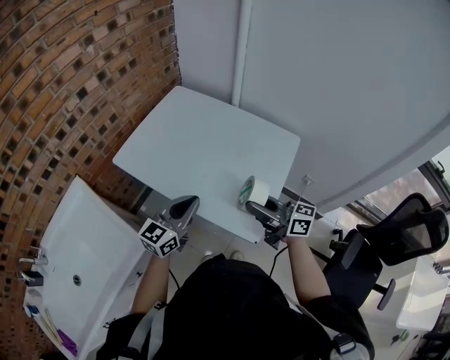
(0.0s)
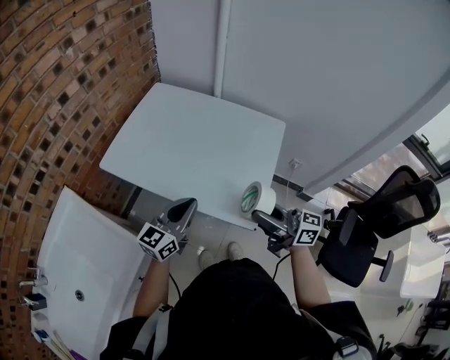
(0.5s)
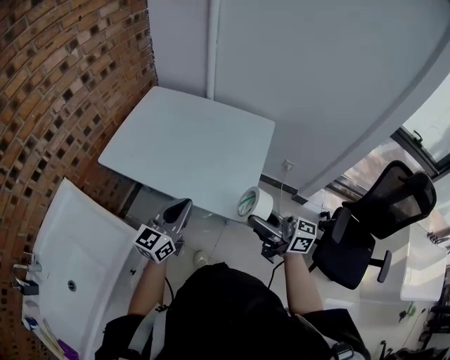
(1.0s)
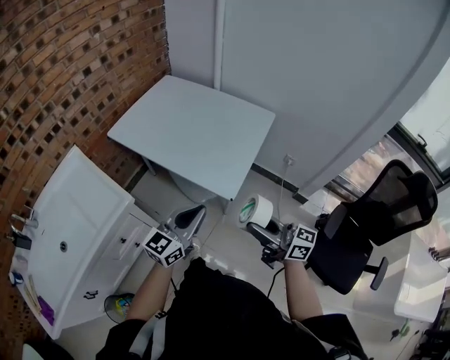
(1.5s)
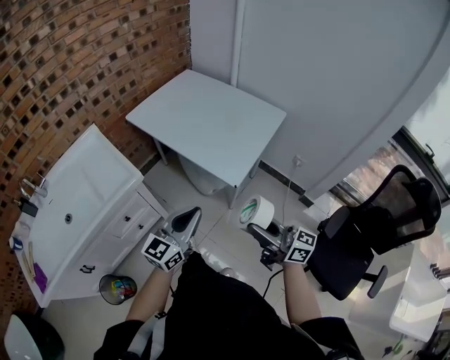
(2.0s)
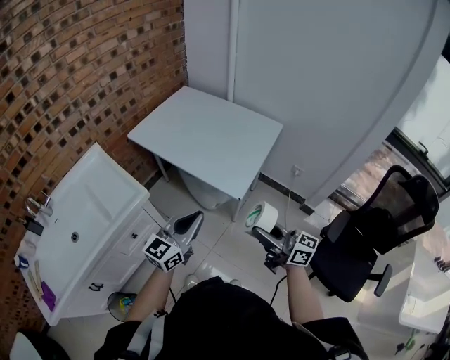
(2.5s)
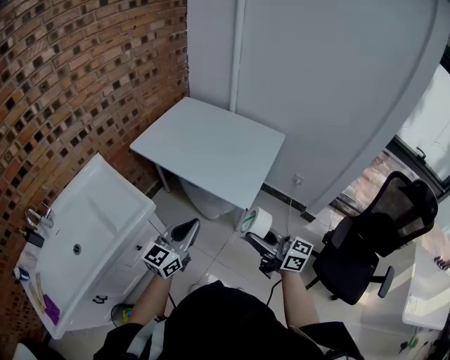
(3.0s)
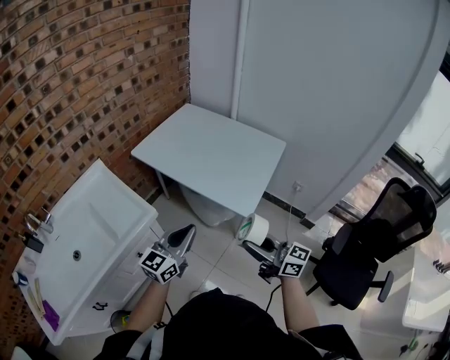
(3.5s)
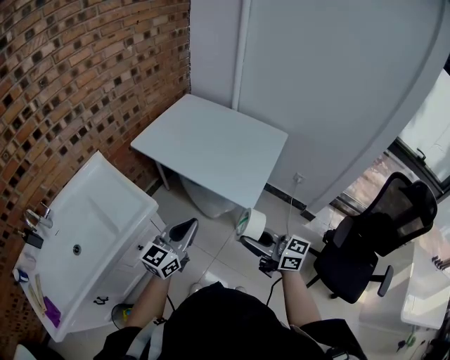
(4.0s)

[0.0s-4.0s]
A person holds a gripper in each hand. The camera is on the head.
0.0s to 2.0s: The two grippers go some 30 cm backward.
2.0s to 4.0s: The left gripper moves to the left and forward, approximately 10 cm. Meanwhile the right gripper travels to the left by roughly 10 cm.

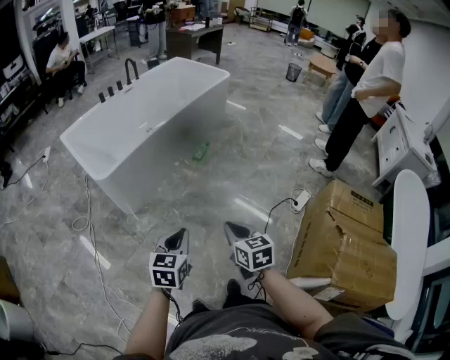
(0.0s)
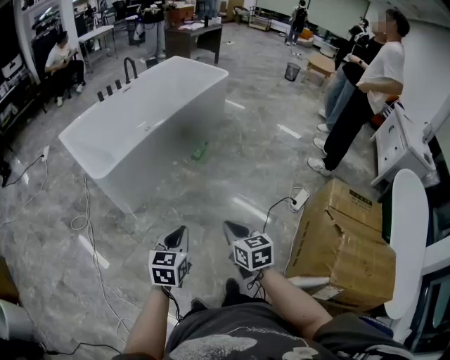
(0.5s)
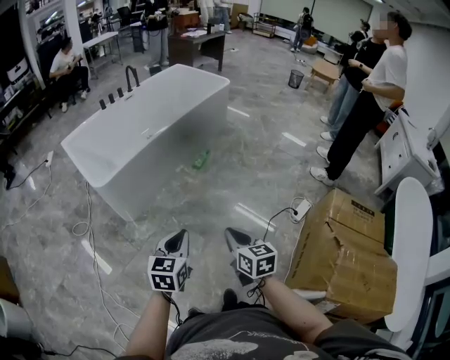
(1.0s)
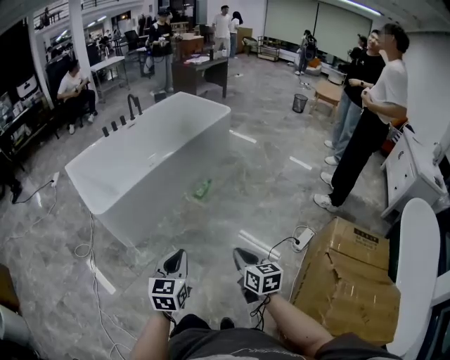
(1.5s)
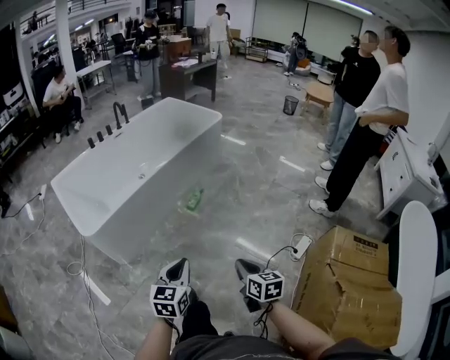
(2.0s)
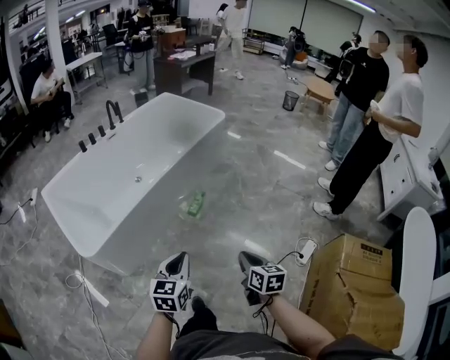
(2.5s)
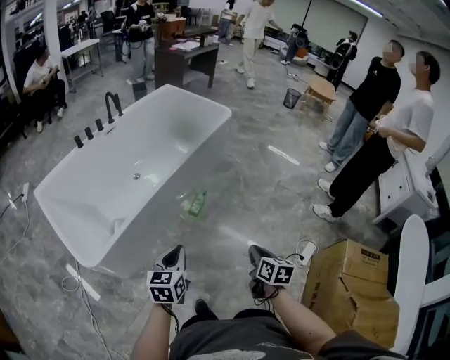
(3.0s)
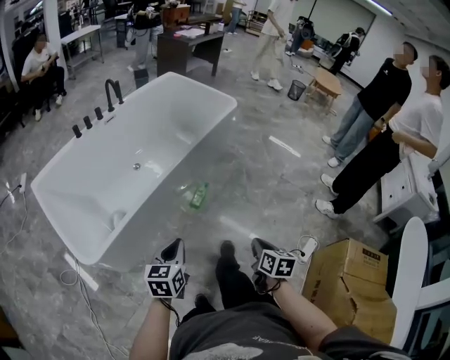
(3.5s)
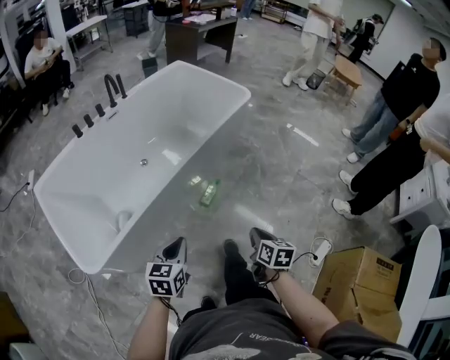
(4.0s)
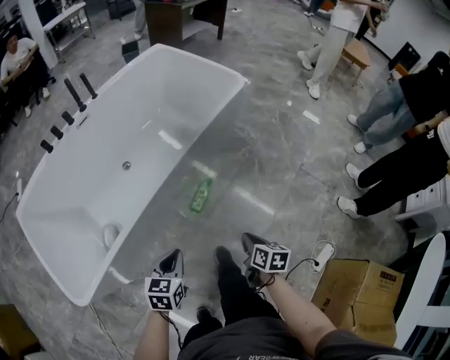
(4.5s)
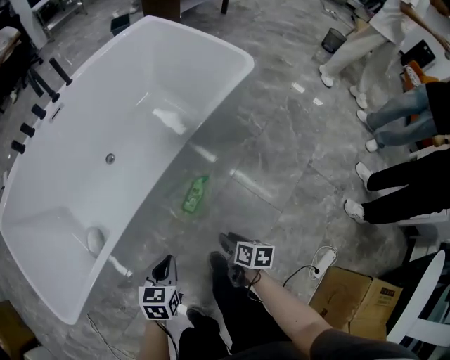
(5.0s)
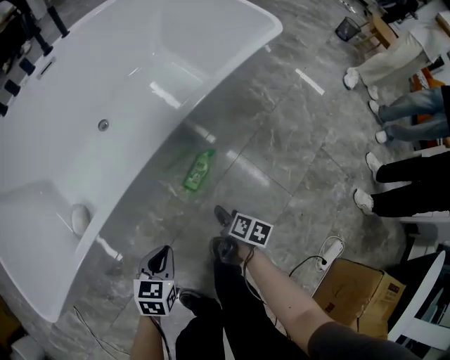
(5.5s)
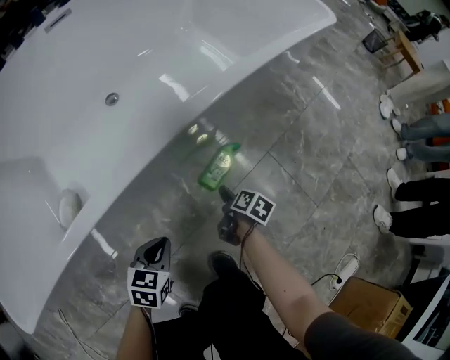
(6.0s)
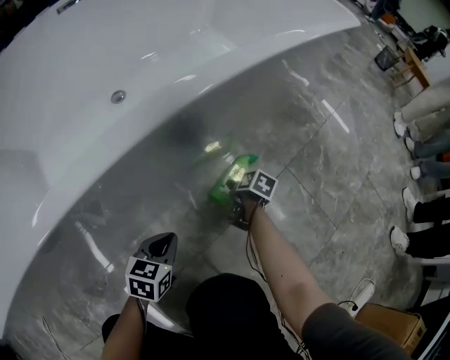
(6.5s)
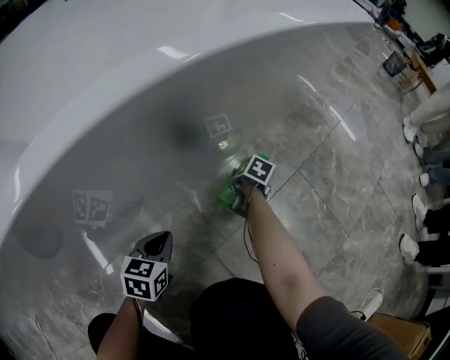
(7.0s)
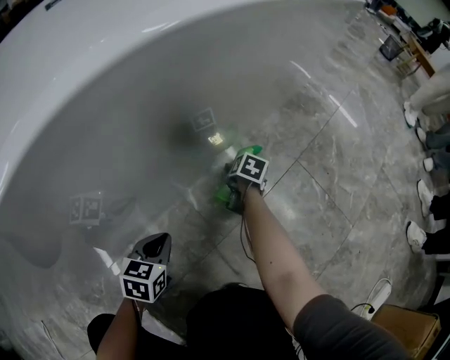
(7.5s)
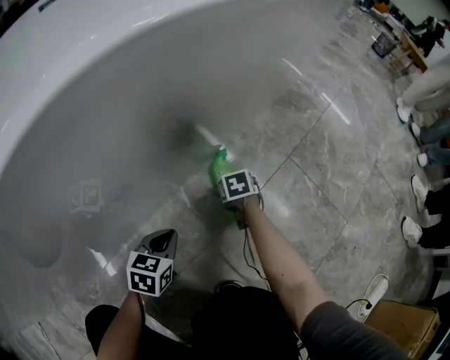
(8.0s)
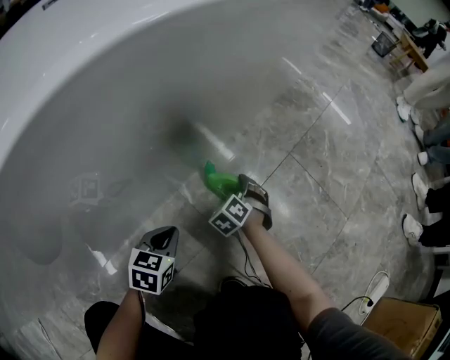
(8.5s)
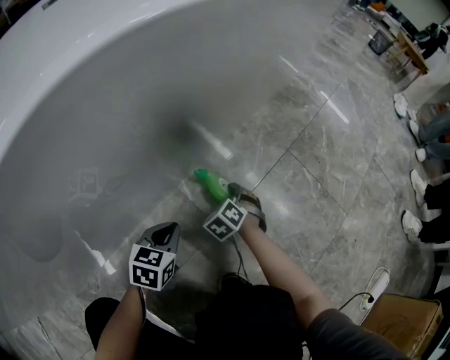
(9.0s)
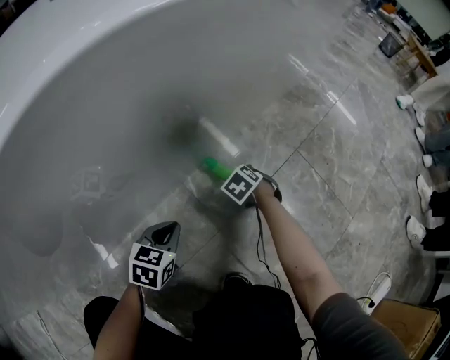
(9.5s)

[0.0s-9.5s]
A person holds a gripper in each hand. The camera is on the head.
0.0s to 2.0s: The two grippers go some 20 cm forward and to the right.
2.0s to 4.0s: The left gripper moves forward and to the left, approximately 40 cm, while the right gripper travels forward by approximately 40 cm.
4.0s to 5.5s: Both grippers move downward and forward, about 40 cm. The right gripper turns by about 30 degrees, and opens.
5.5s to 7.5s: The left gripper moves downward, approximately 35 cm; the right gripper travels downward and forward by about 40 cm, and swivels roughly 20 degrees.
7.5s to 9.5s: The right gripper moves approximately 10 cm, rotates around the line of its fingers by roughly 70 degrees, counterclockwise from behind, and closes.

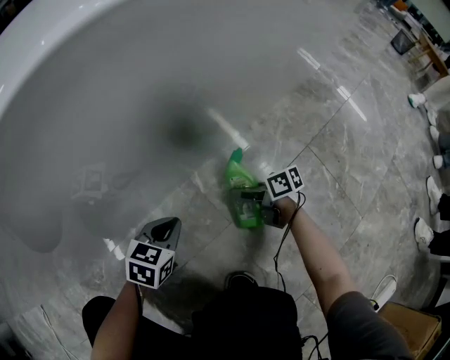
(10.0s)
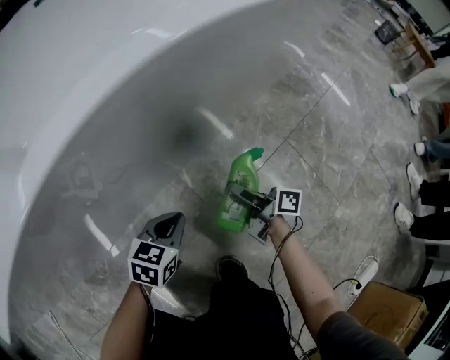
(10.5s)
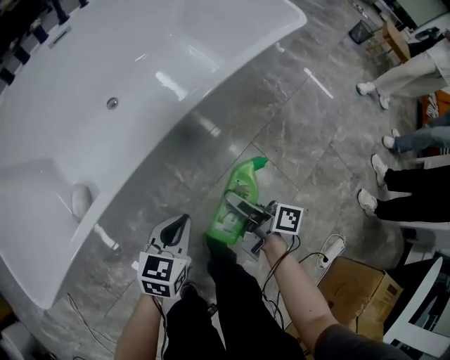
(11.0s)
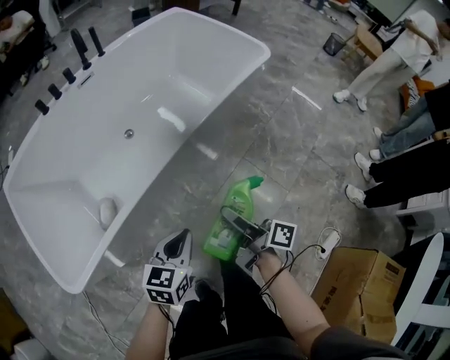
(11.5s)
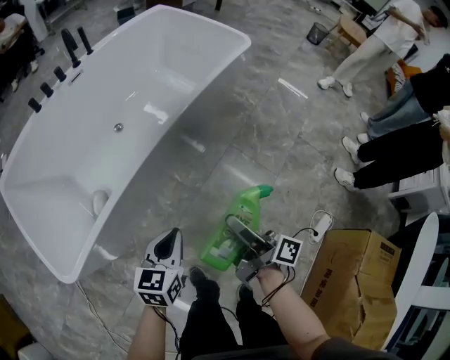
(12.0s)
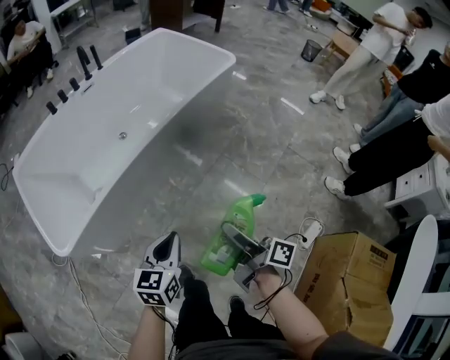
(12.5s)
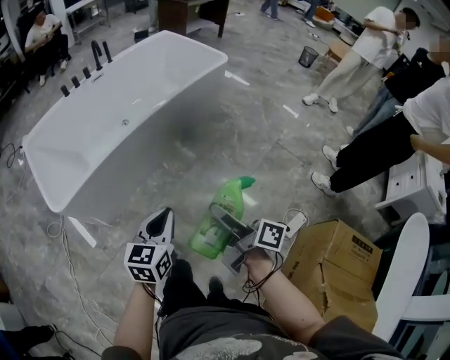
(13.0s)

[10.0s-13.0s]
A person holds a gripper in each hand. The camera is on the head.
10.0s to 11.5s: The two grippers go approximately 60 cm upward. The right gripper changes its angle by approximately 60 degrees.
11.5s to 13.0s: Both grippers travel together backward and upward, roughly 35 cm.

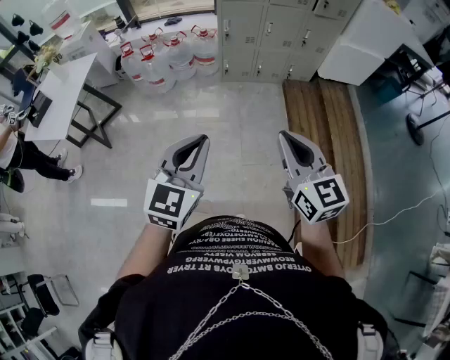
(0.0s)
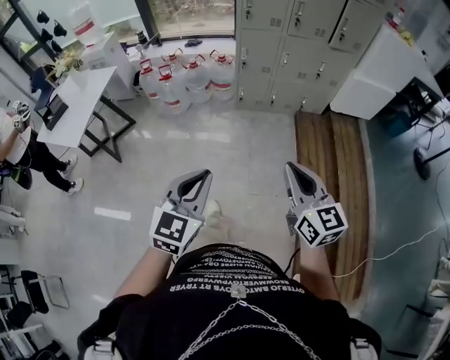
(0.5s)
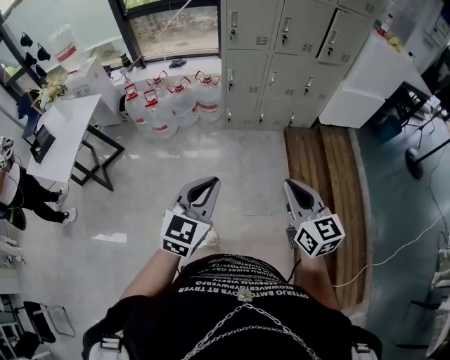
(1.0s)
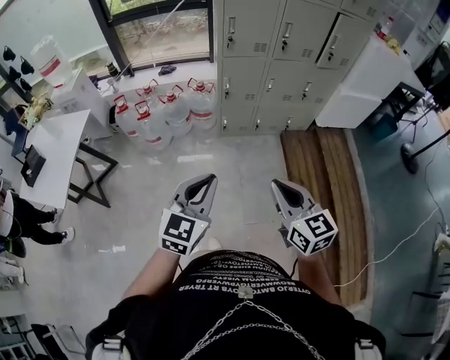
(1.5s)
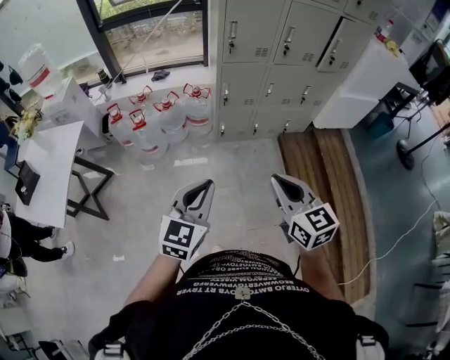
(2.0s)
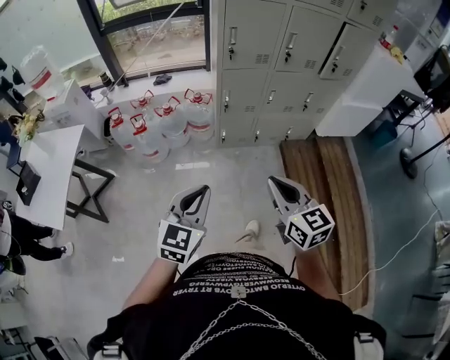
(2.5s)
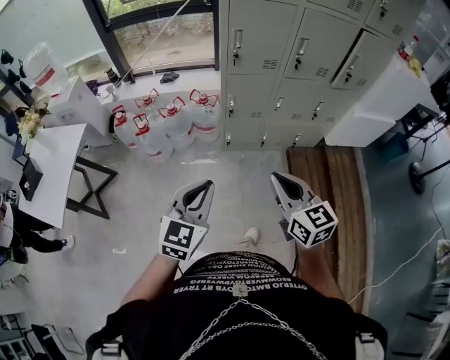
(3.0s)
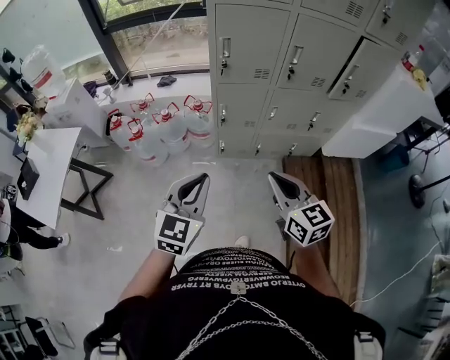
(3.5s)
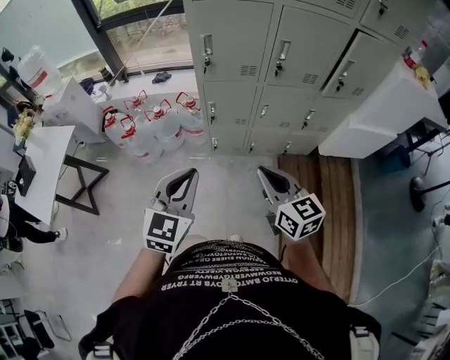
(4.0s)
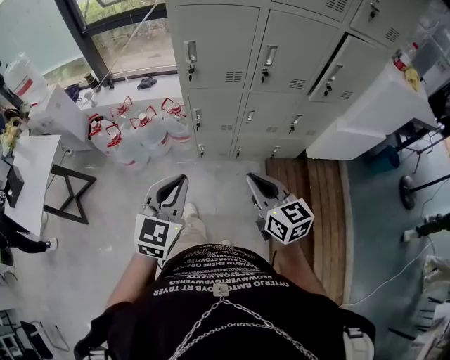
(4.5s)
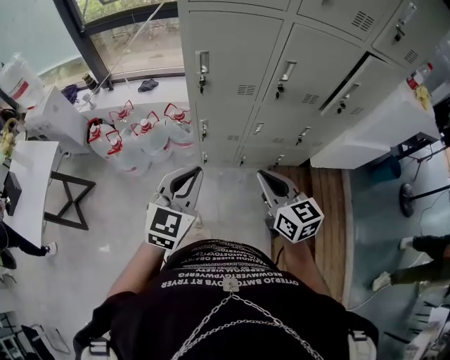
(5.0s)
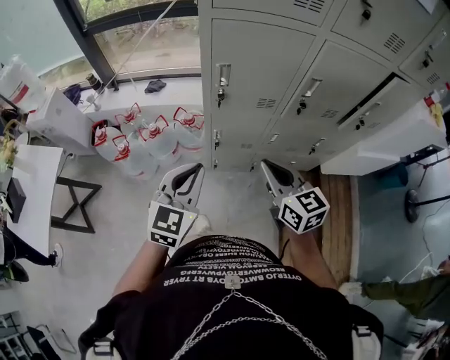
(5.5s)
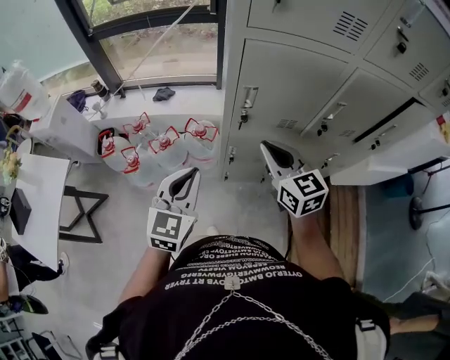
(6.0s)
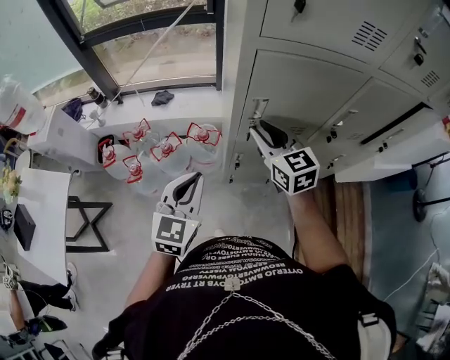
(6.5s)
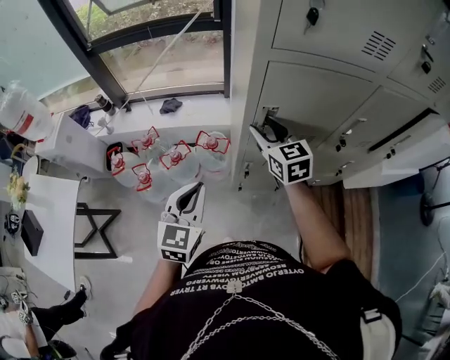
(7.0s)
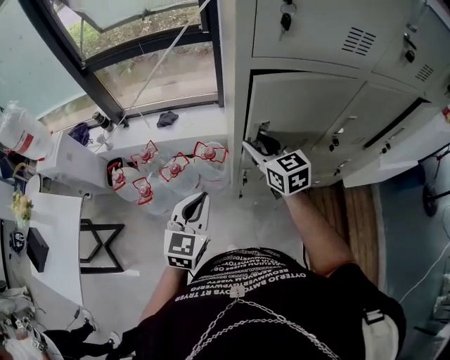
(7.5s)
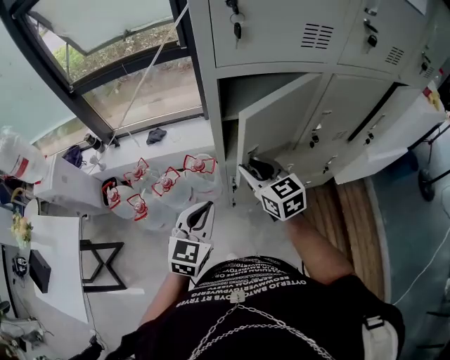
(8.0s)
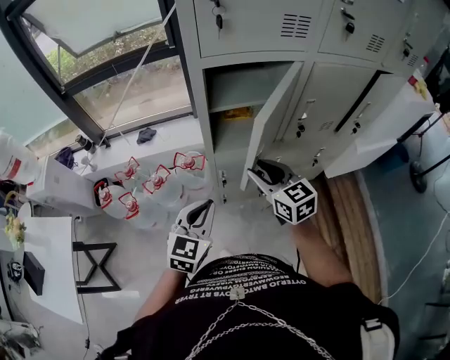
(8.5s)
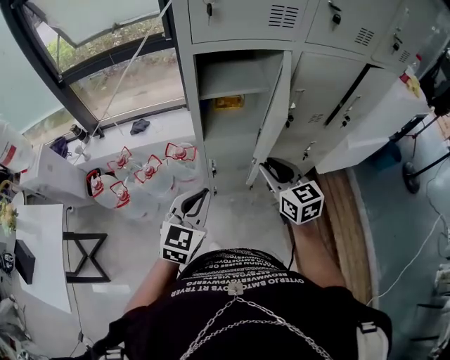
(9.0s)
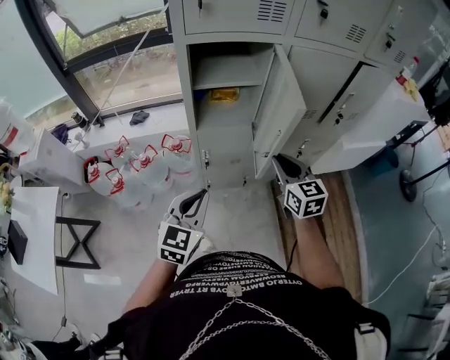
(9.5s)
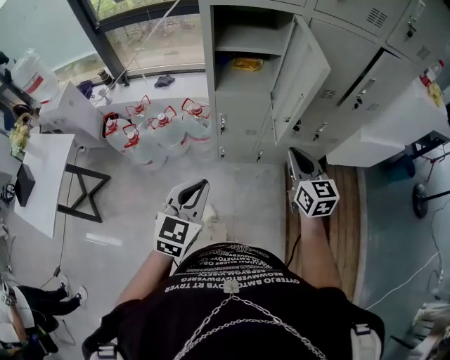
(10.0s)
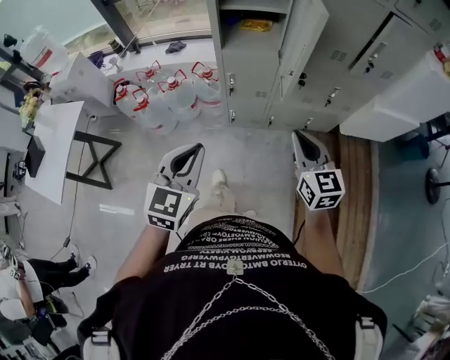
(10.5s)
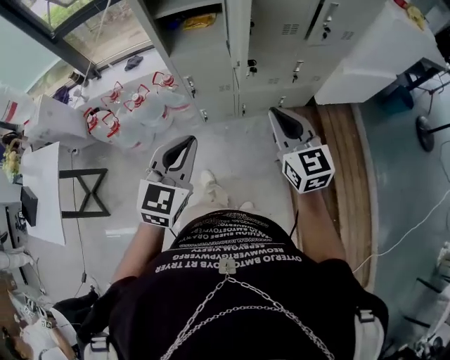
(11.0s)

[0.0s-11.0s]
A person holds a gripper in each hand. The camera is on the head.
0.0s to 2.0s: The left gripper travels forward by about 30 cm; the right gripper heads forward and to the left, covering roughly 30 cm.
2.0s to 3.5s: Both grippers move forward and to the right, roughly 25 cm.
3.5s to 5.5s: Both grippers travel together forward, approximately 25 cm.
5.5s to 7.5s: The left gripper is displaced forward and to the left by roughly 15 cm, while the right gripper travels forward and to the left by about 30 cm, and opens its fingers.
7.5s to 9.0s: The left gripper moves to the right and backward, roughly 15 cm, while the right gripper heads backward and to the right, covering about 25 cm.
9.0s to 11.0s: Both grippers travel together backward and to the right, approximately 20 cm. The right gripper closes.
